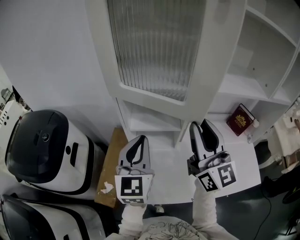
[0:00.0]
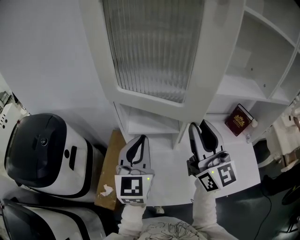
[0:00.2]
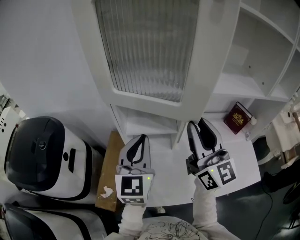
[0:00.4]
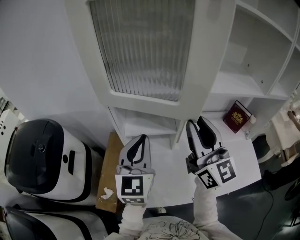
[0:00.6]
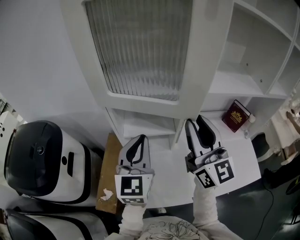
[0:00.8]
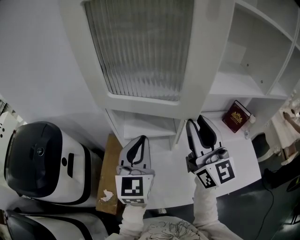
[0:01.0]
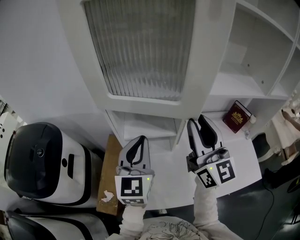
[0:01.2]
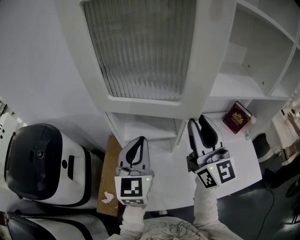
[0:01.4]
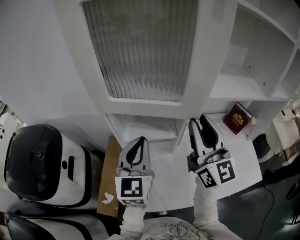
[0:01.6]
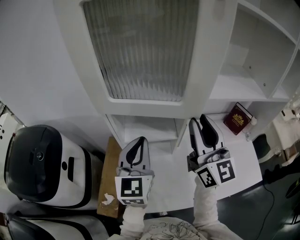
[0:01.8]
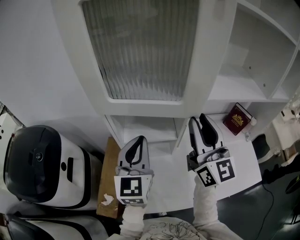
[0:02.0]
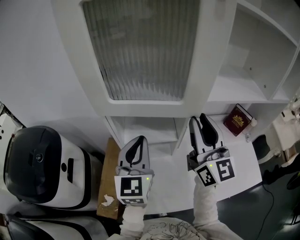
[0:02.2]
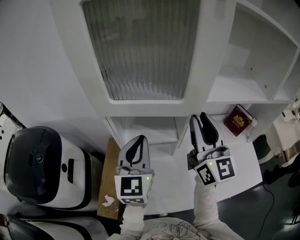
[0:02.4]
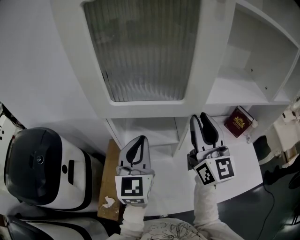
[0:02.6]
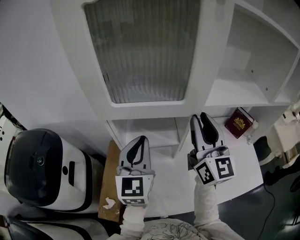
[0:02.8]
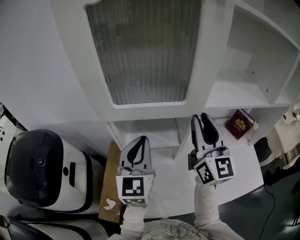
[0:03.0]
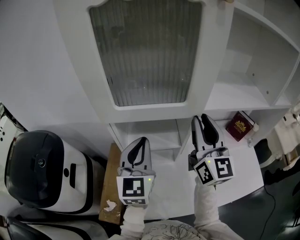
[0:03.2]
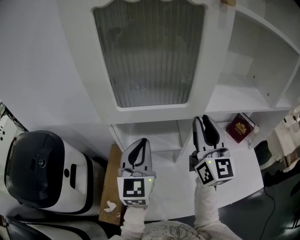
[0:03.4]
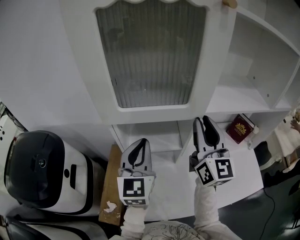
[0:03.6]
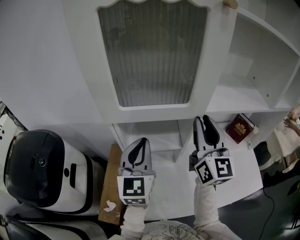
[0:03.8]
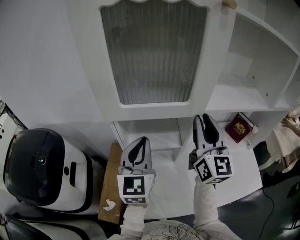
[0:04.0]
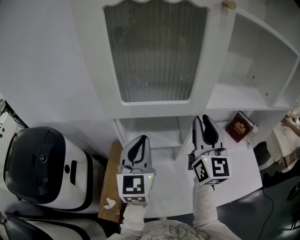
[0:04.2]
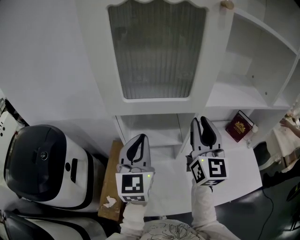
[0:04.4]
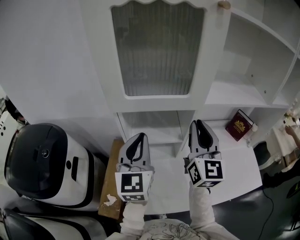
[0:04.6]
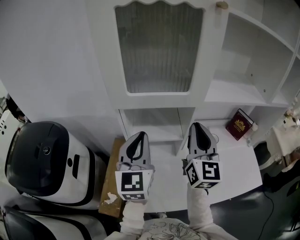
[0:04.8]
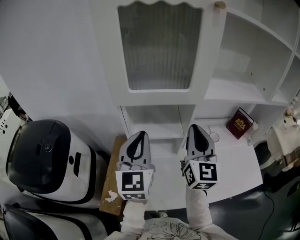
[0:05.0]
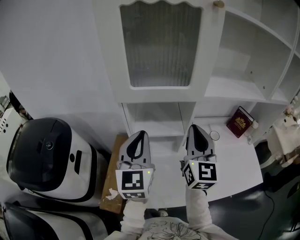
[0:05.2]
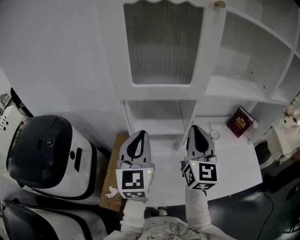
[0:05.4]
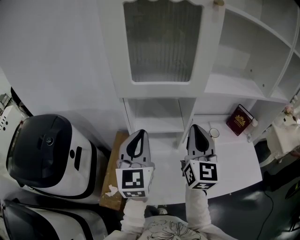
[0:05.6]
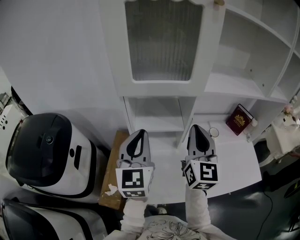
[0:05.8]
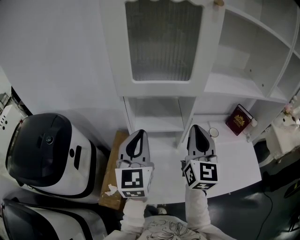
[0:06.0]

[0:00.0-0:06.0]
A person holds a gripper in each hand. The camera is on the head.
0:00.0 to 0:01.6: Both grippers move forward, about 5 cm.
0:01.6 to 0:04.4: There are only small adjustments of the grippers.
0:04.4 to 0:06.0: The two grippers go approximately 5 cm backward. The right gripper closes its fingers.

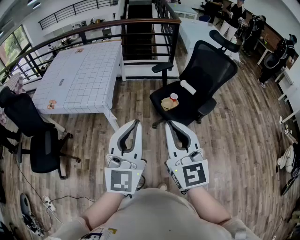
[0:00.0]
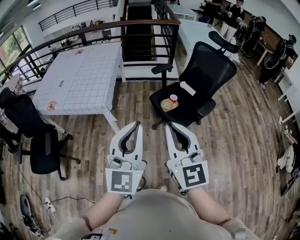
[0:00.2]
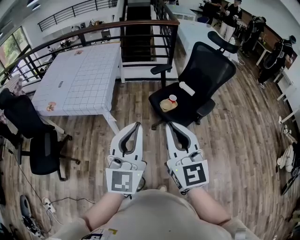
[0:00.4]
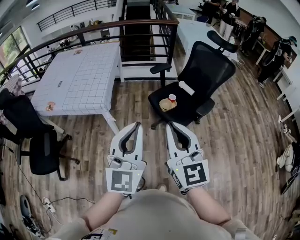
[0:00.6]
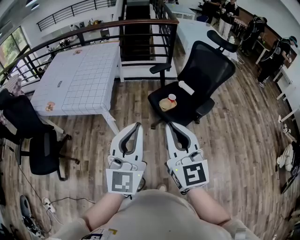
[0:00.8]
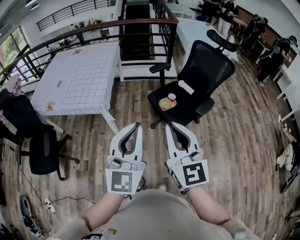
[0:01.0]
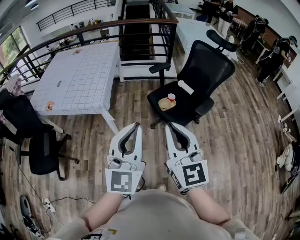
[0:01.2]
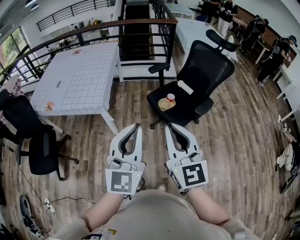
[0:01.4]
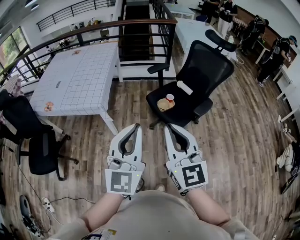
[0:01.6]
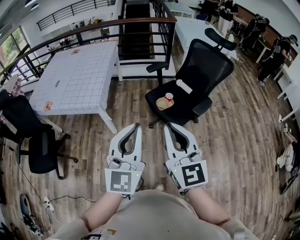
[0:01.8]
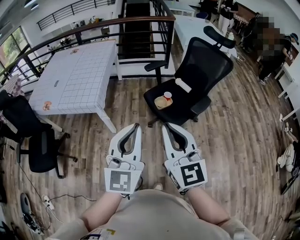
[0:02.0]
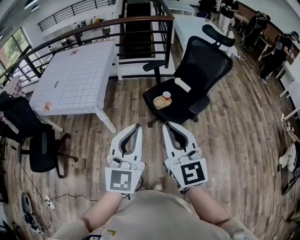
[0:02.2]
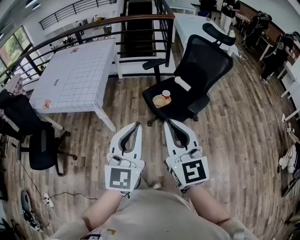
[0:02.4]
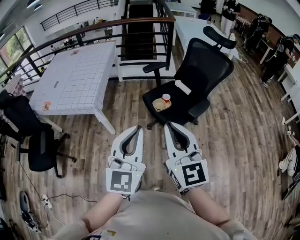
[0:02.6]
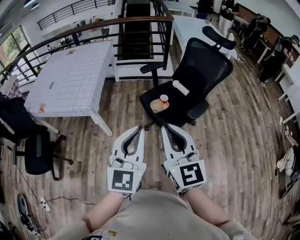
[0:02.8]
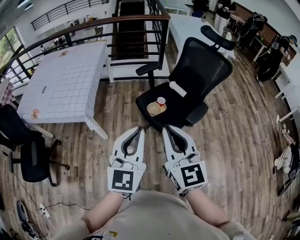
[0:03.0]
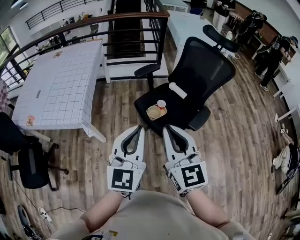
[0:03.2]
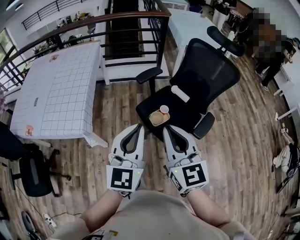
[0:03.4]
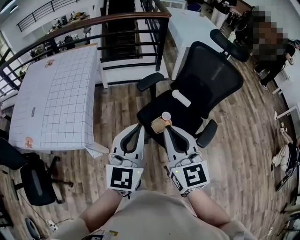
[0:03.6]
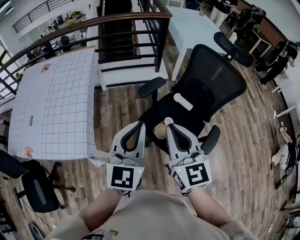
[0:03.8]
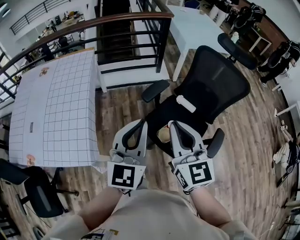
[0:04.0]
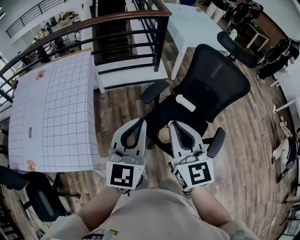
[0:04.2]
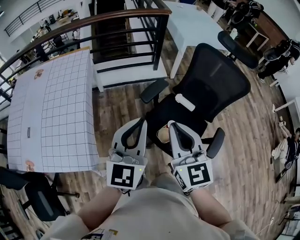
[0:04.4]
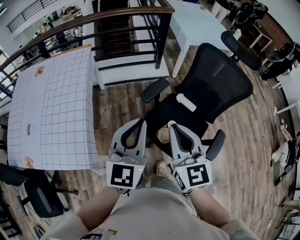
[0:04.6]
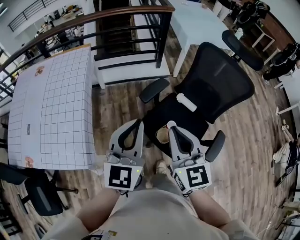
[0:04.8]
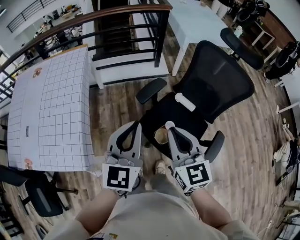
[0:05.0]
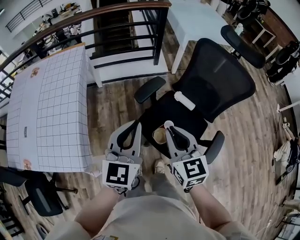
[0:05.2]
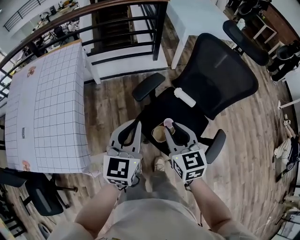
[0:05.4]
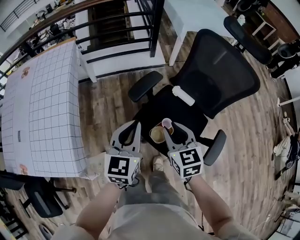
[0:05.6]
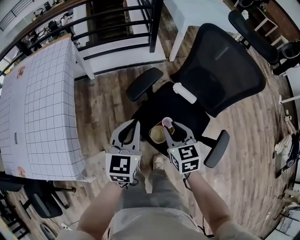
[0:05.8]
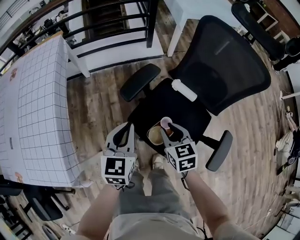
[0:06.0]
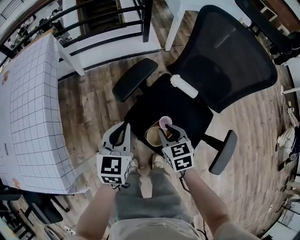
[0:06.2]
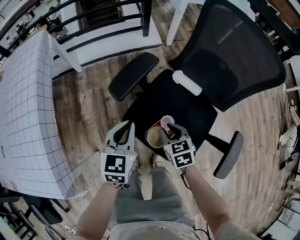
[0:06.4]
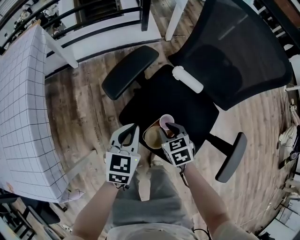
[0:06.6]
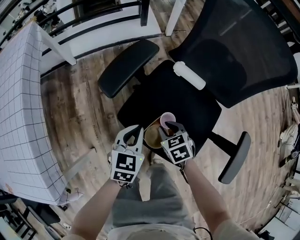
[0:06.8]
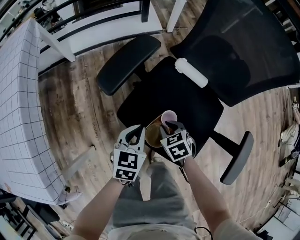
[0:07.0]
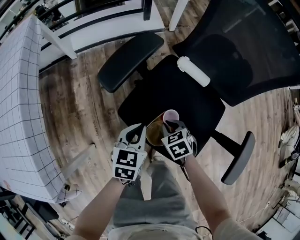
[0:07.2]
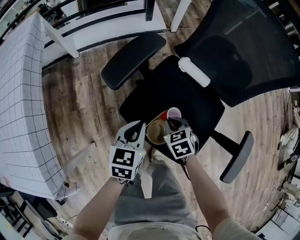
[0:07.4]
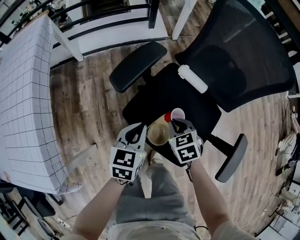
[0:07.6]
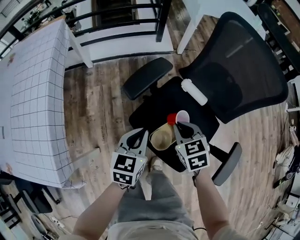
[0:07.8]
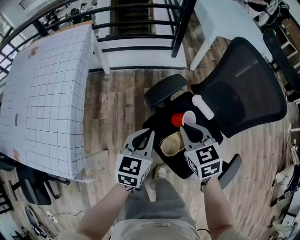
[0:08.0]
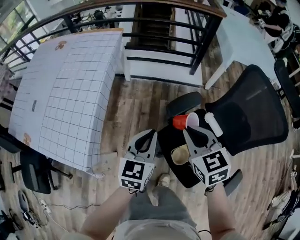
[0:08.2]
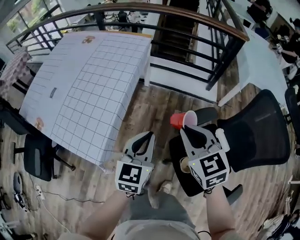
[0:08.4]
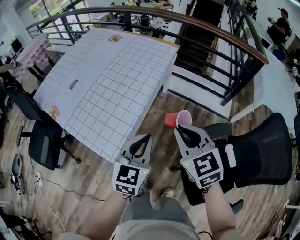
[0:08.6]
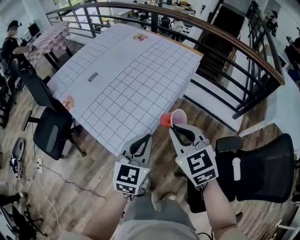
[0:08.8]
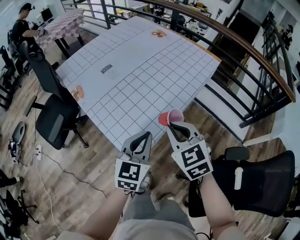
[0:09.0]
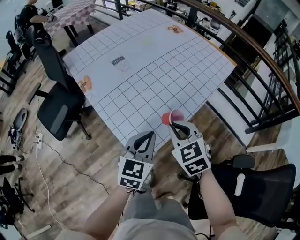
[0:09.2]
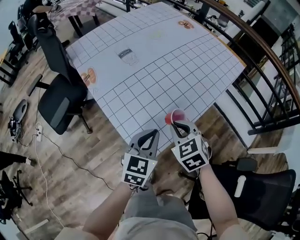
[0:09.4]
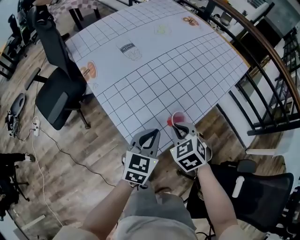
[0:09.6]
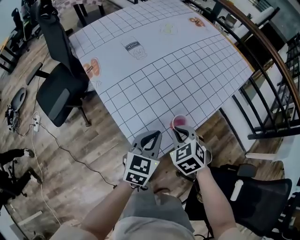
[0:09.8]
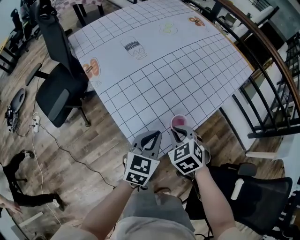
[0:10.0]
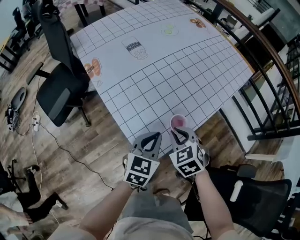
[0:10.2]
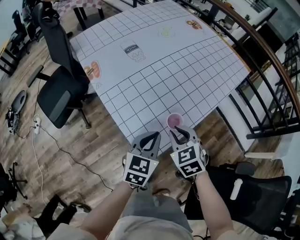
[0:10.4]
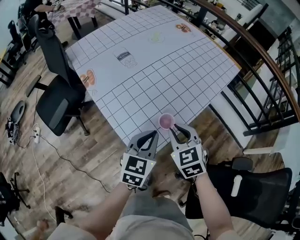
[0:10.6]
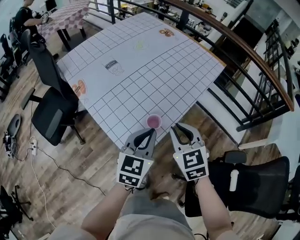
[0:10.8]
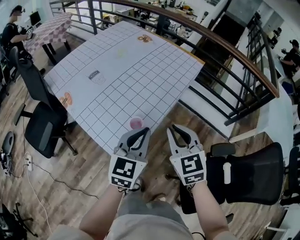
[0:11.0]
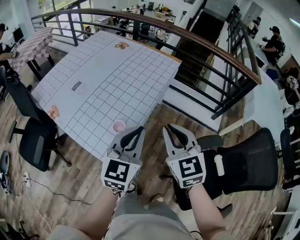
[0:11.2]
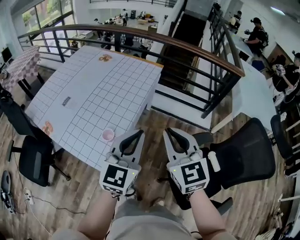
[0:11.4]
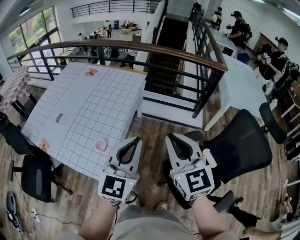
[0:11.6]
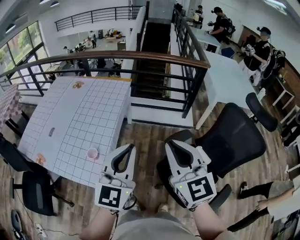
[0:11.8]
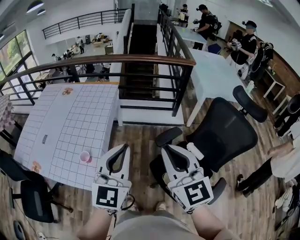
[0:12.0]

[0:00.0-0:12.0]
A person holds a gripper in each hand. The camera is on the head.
0:00.0 to 0:01.6: The grippers stay close to where they were, moving slightly.
0:01.6 to 0:03.0: The grippers both shift forward, to the right and downward by approximately 15 cm.
0:03.0 to 0:04.4: Both grippers travel together forward and to the left, roughly 25 cm.
0:04.4 to 0:06.0: The right gripper goes some 35 cm downward, and tilts its fingers approximately 30 degrees downward, while the left gripper heads downward and forward, covering some 30 cm, and swivels approximately 20 degrees.
0:06.0 to 0:07.6: Both grippers move downward, some 15 cm. The right gripper changes its angle by some 20 degrees.
0:07.6 to 0:09.0: The pair of grippers is taken about 50 cm. The left gripper turns by approximately 60 degrees. Meanwhile the right gripper changes its angle by approximately 70 degrees.
0:09.0 to 0:10.4: The two grippers go about 15 cm downward and to the left.
0:10.4 to 0:12.0: The left gripper moves upward, about 35 cm, and angles its fingers upward, by roughly 30 degrees. Meanwhile the right gripper moves roughly 60 cm, and points its fingers approximately 40 degrees further upward.

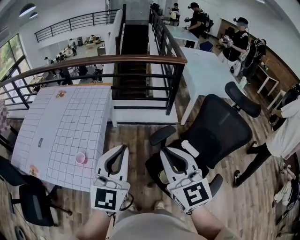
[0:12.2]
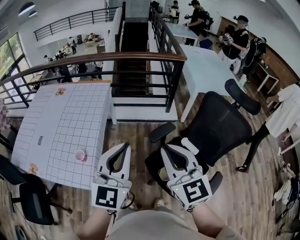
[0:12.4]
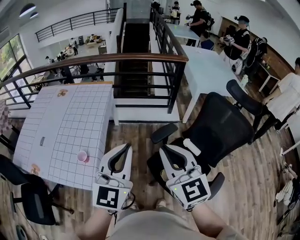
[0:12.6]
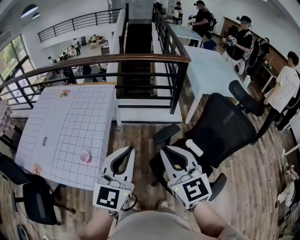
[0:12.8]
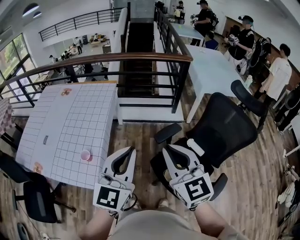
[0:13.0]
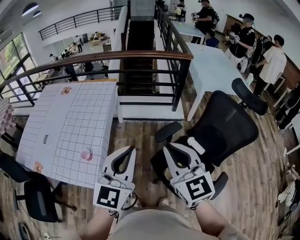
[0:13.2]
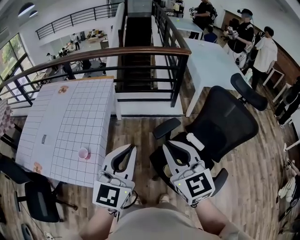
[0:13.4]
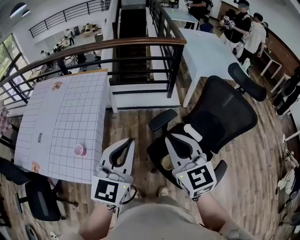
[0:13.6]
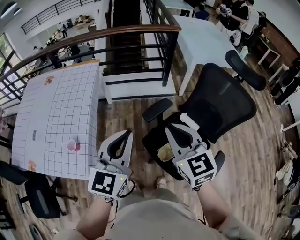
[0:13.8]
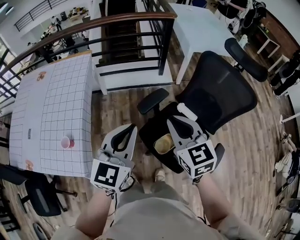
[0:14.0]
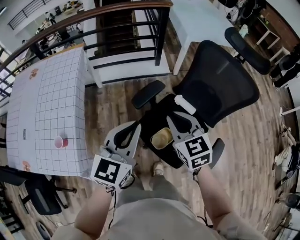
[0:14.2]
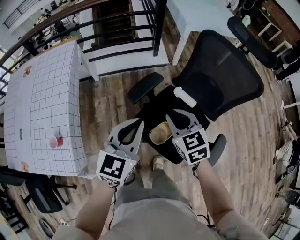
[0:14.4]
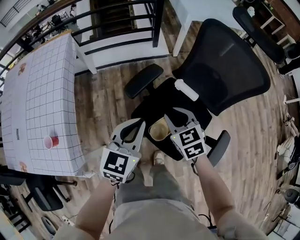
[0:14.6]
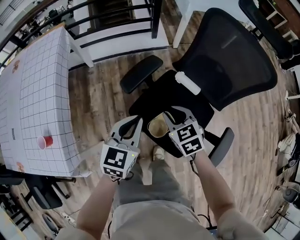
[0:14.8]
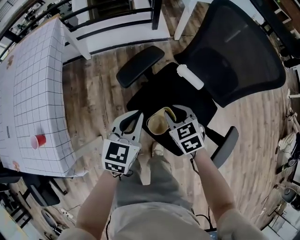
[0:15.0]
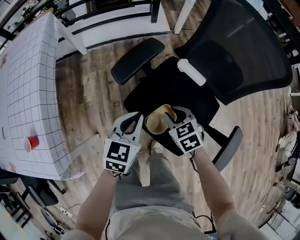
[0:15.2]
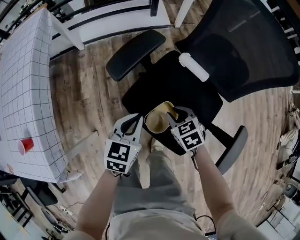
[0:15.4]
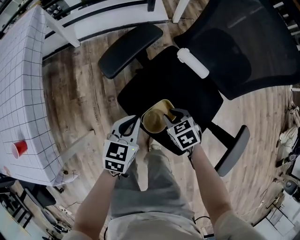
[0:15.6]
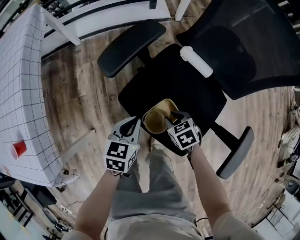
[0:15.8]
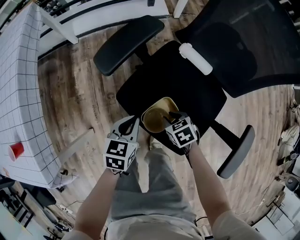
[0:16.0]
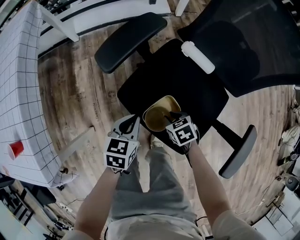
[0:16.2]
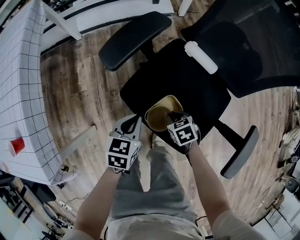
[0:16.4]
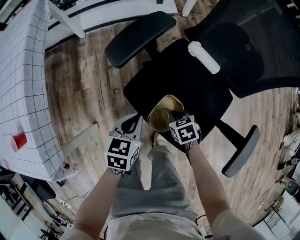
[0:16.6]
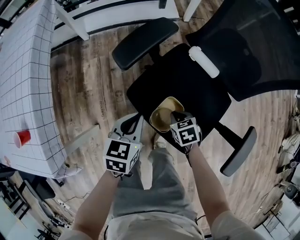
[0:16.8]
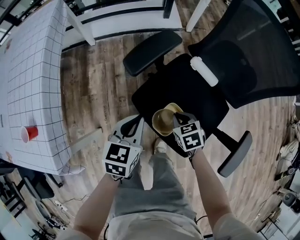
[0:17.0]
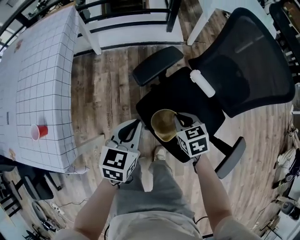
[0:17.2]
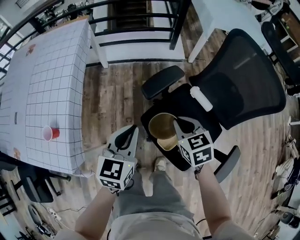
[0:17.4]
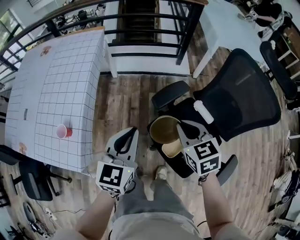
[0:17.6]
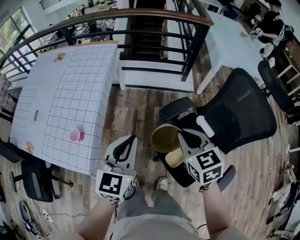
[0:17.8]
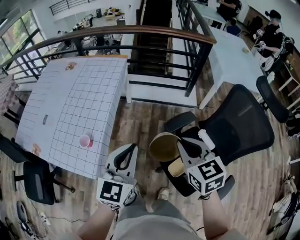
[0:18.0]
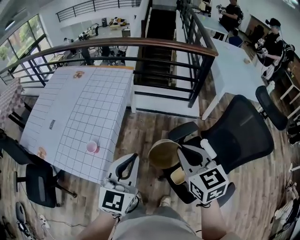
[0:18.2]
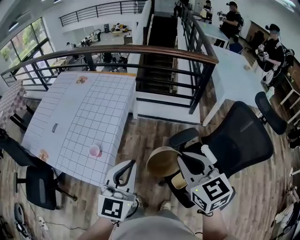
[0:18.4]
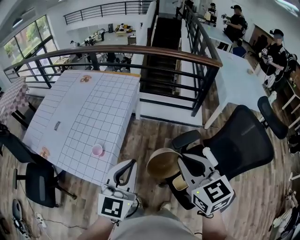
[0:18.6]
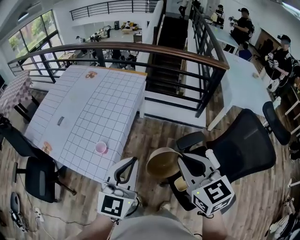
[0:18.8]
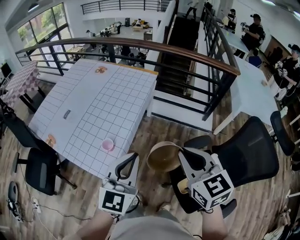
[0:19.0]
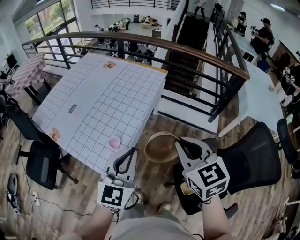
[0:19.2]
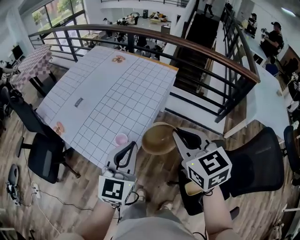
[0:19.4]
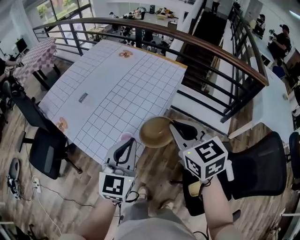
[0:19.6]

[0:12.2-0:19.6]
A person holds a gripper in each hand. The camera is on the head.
0:12.2 to 0:13.6: The right gripper moves roughly 5 cm. The left gripper shifts by some 5 cm.
0:13.6 to 0:15.2: Both grippers move downward, some 50 cm. The right gripper tilts its fingers roughly 40 degrees downward; the left gripper points its fingers roughly 30 degrees further downward.
0:15.2 to 0:16.6: The two grippers go roughly 15 cm downward.
0:16.6 to 0:18.2: The right gripper goes some 60 cm upward, and points its fingers approximately 40 degrees further upward; the left gripper travels upward and to the left by about 60 cm, and points its fingers about 40 degrees further upward.
0:18.2 to 0:19.6: Both grippers travel together to the left and forward, approximately 25 cm. The left gripper turns by some 20 degrees. The right gripper changes its angle by about 30 degrees.
